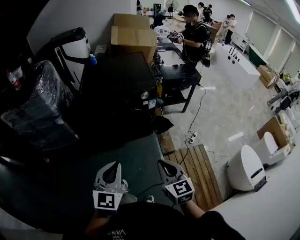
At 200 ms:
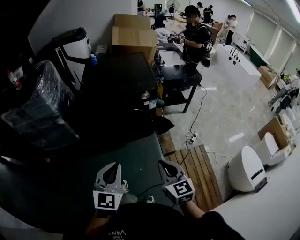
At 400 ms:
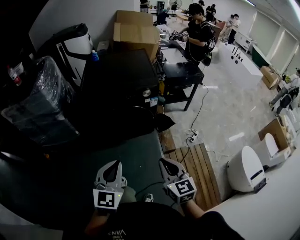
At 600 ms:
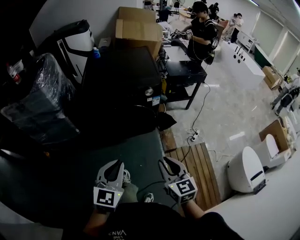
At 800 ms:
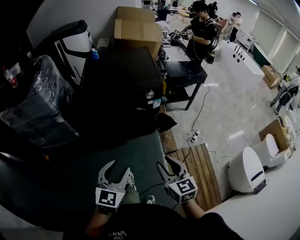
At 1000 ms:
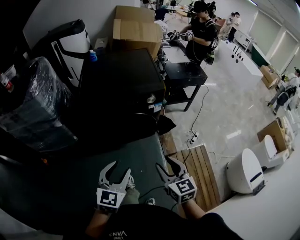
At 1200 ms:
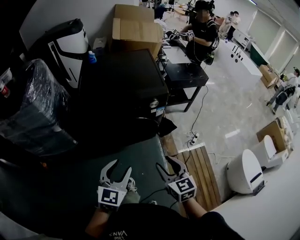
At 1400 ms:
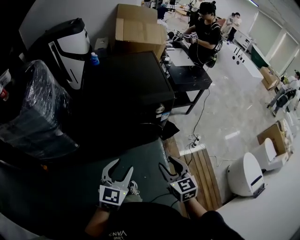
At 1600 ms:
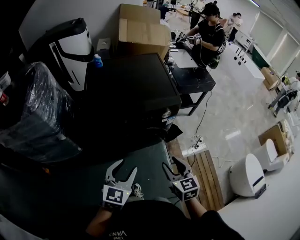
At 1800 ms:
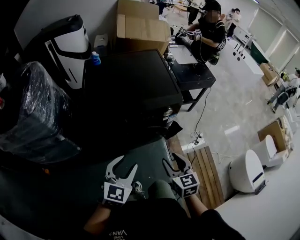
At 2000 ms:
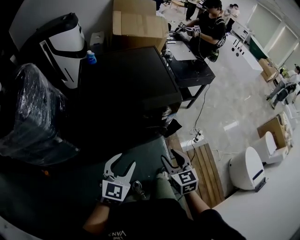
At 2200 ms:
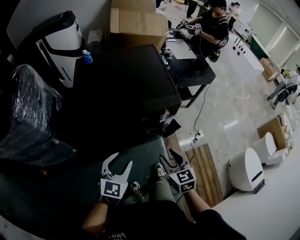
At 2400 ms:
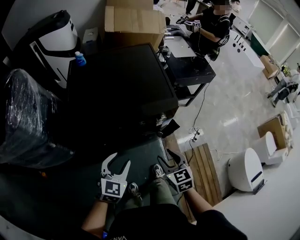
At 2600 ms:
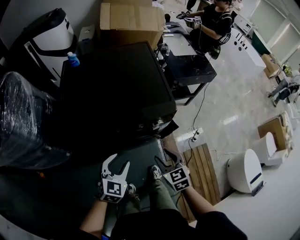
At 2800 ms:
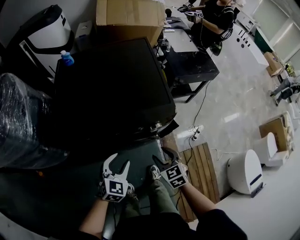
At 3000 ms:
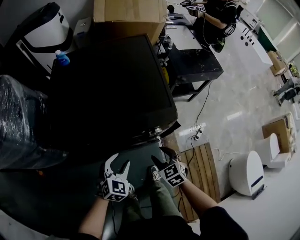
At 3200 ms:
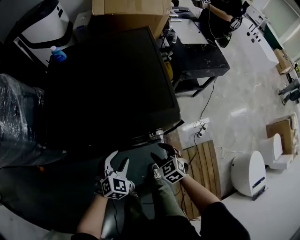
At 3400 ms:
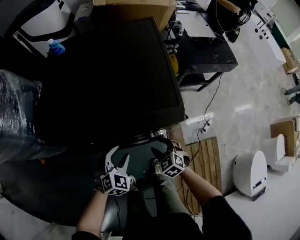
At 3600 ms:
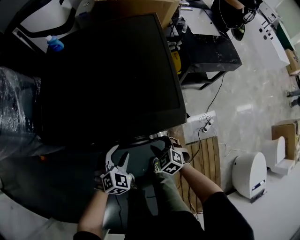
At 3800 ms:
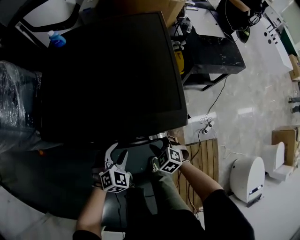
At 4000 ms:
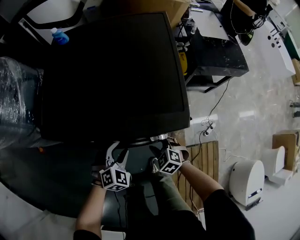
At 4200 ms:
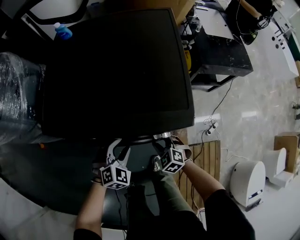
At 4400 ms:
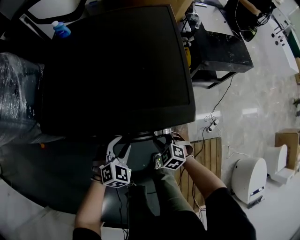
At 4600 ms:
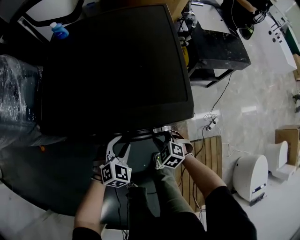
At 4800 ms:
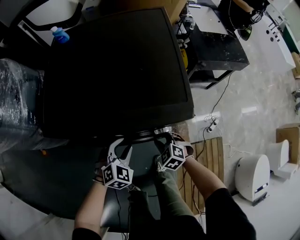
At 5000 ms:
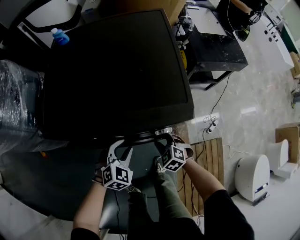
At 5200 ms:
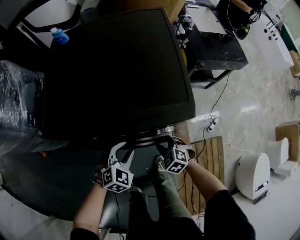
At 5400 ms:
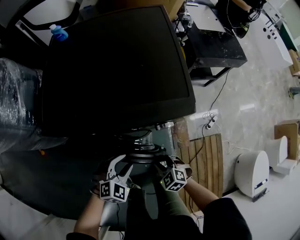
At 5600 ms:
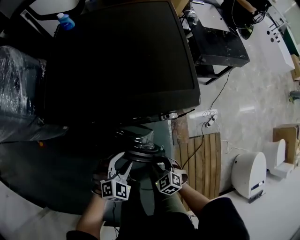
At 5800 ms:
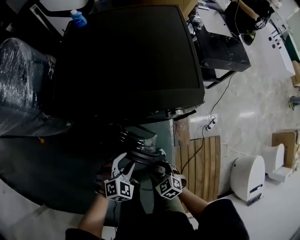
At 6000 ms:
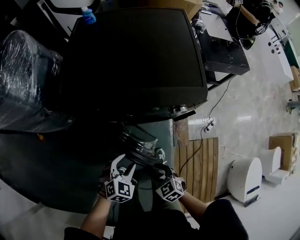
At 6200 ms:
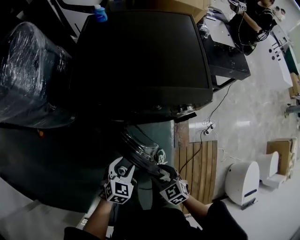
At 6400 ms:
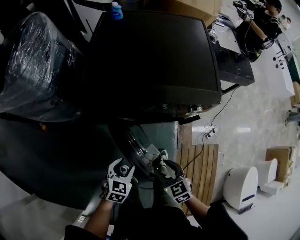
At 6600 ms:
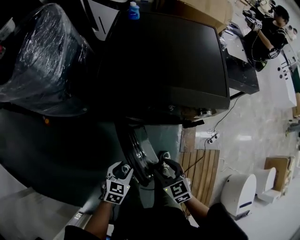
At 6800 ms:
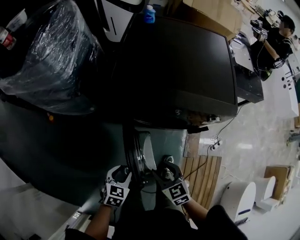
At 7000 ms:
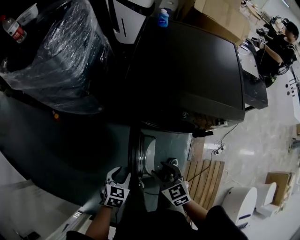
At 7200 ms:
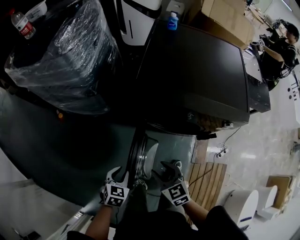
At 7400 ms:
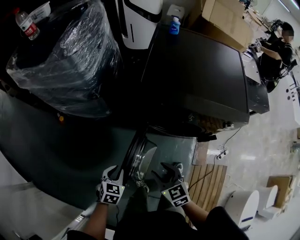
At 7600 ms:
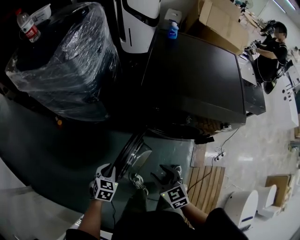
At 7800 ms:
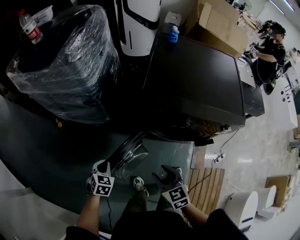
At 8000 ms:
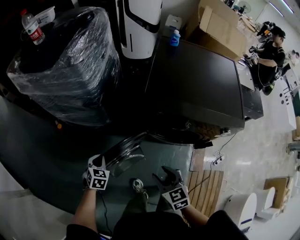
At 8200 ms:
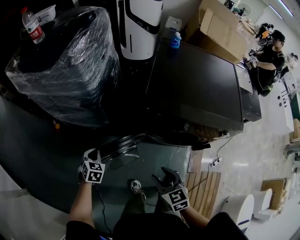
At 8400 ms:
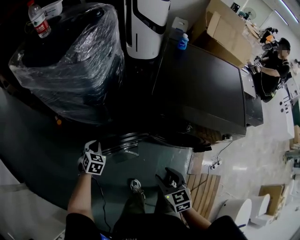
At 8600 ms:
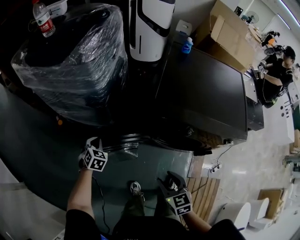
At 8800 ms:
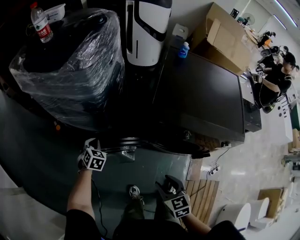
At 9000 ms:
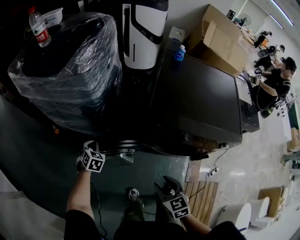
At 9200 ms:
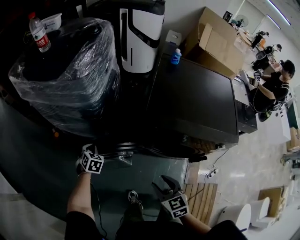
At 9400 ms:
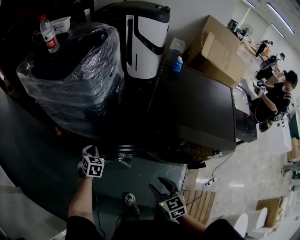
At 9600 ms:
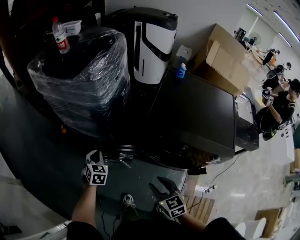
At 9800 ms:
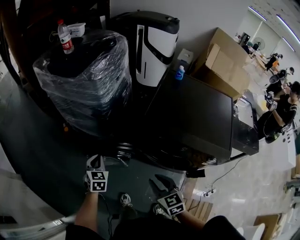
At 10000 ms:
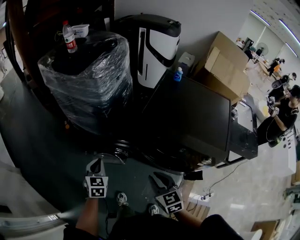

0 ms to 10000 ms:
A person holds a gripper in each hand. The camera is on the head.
0 ms to 1400 ms: Both grippers travel together forward, approximately 20 cm. The right gripper opens. The left gripper opens its fingers.
1400 ms to 2800 ms: Both grippers move forward and downward, roughly 25 cm.
2800 ms to 4200 ms: The grippers both shift downward and forward by approximately 15 cm. The left gripper rotates about 20 degrees, while the right gripper changes its angle by about 40 degrees.
4200 ms to 5800 ms: Both grippers travel together backward and to the left, approximately 20 cm. The right gripper opens.
5800 ms to 7200 ms: The left gripper travels to the left by about 30 cm, rotates around the line of its fingers by approximately 50 degrees, counterclockwise from behind, and closes. The right gripper shifts some 25 cm to the left and upward.
7200 ms to 8600 ms: The left gripper shifts roughly 30 cm forward and to the left, rotates some 20 degrees, and closes up. The right gripper ends up about 5 cm from where it was.
8600 ms to 10000 ms: The right gripper heads upward and to the right, covering some 10 cm, and closes up; the left gripper travels backward and upward by approximately 25 cm, and rotates some 30 degrees.

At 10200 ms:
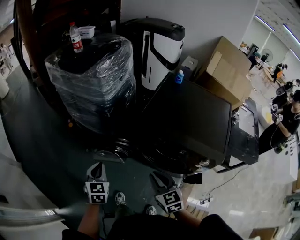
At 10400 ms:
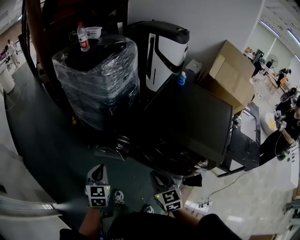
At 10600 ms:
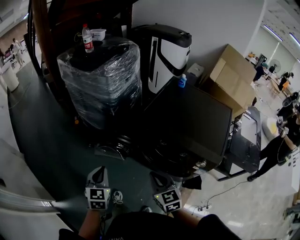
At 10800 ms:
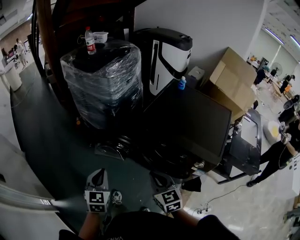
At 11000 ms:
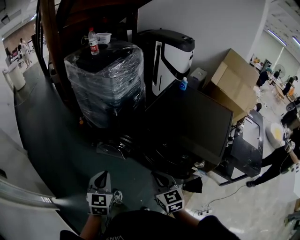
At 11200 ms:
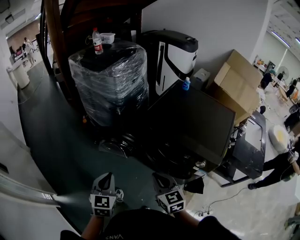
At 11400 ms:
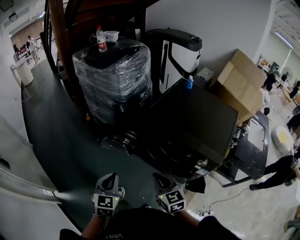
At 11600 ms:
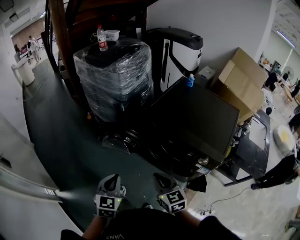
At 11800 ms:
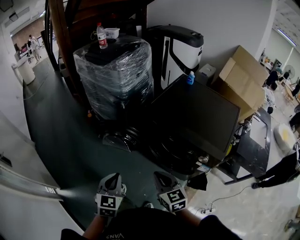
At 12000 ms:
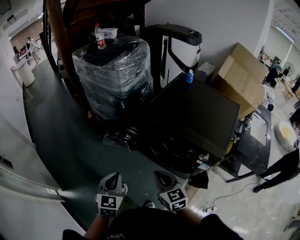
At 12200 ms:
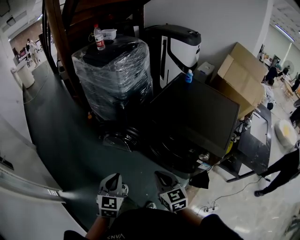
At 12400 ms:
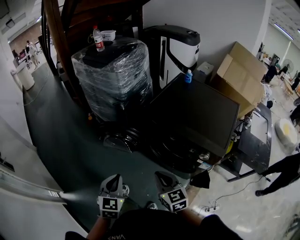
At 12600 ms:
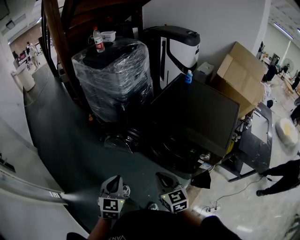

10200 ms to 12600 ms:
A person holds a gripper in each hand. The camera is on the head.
10200 ms to 11400 ms: The left gripper shifts approximately 20 cm backward; the right gripper travels backward by some 10 cm.
11400 ms to 12600 ms: The grippers stay close to where they were, moving slightly.
